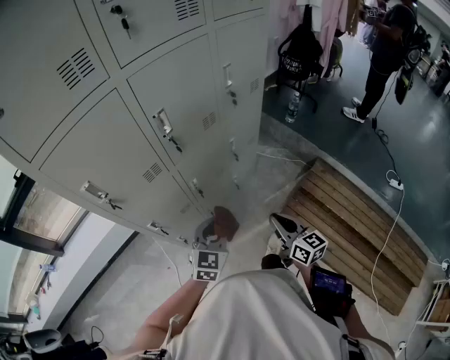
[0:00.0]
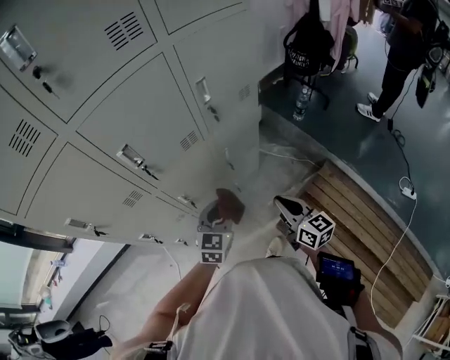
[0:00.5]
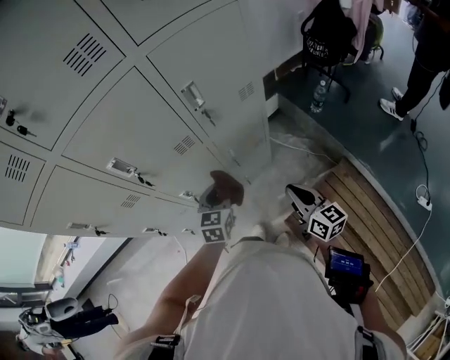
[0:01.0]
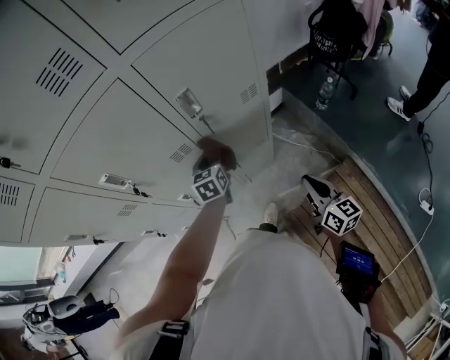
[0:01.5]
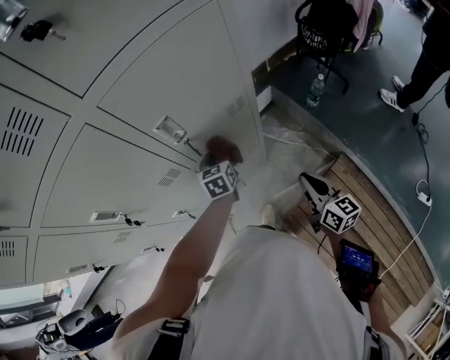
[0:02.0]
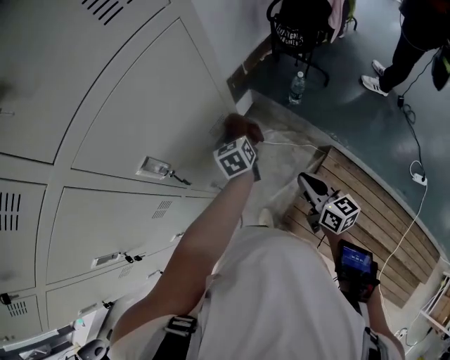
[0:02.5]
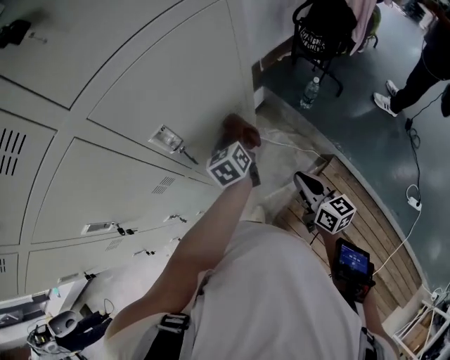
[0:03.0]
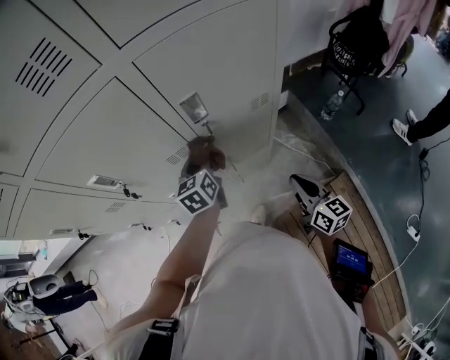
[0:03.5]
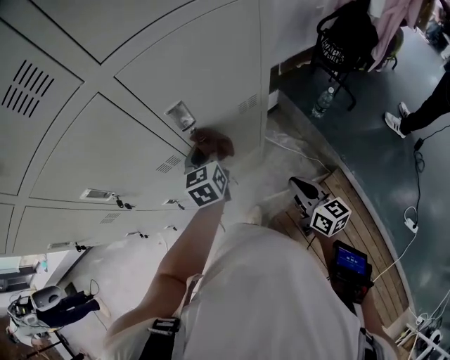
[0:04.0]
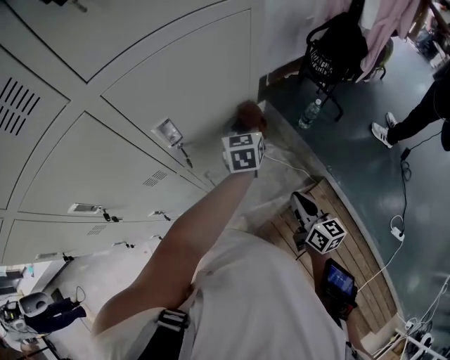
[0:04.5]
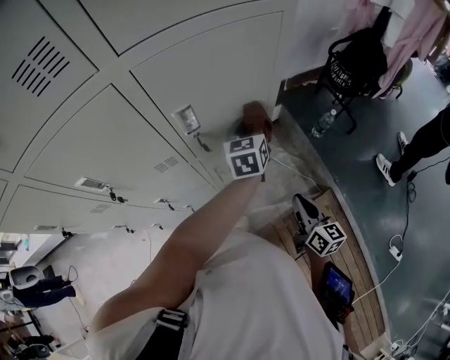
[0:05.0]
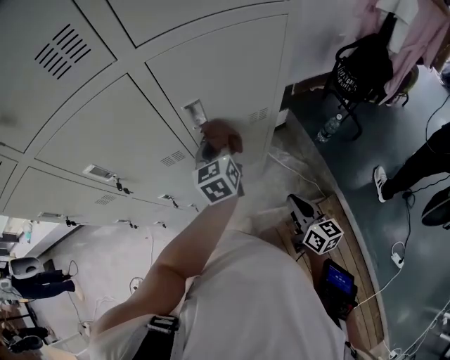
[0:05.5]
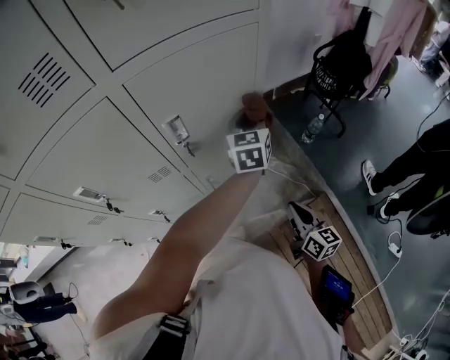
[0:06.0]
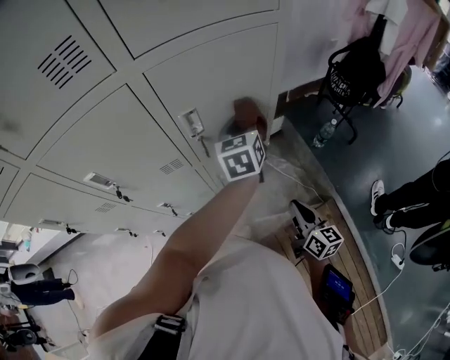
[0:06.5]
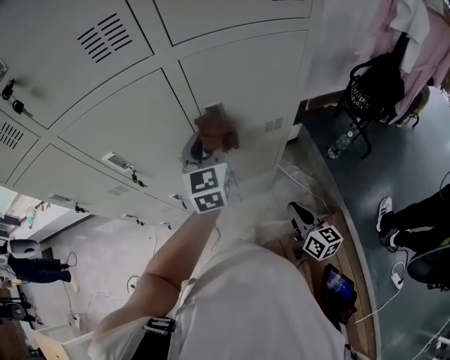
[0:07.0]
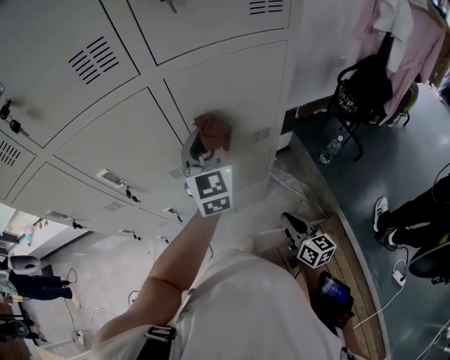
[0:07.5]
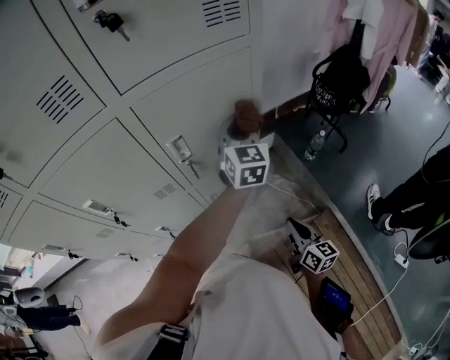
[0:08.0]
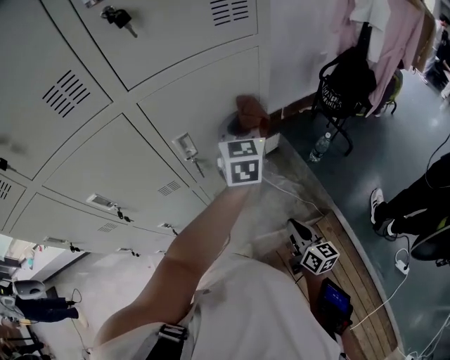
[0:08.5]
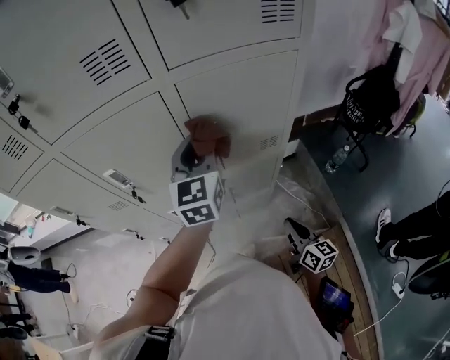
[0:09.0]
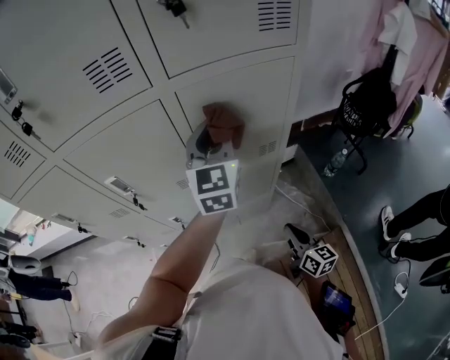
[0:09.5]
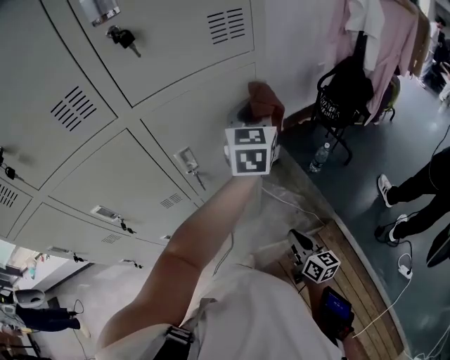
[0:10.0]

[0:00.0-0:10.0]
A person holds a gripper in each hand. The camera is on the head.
0:00.0 to 0:02.0: The right gripper travels to the right and forward by some 35 cm. Meanwhile the left gripper moves forward and to the right, some 40 cm, and turns by approximately 40 degrees.
0:02.0 to 0:04.0: The left gripper swings left and right, roughly 25 cm each way, with 2 reversals.
0:04.0 to 0:06.0: The left gripper goes left and right, roughly 20 cm each way, reversing 2 times. Meanwhile the right gripper changes place by roughly 5 cm.
0:06.0 to 0:08.0: The left gripper goes about 5 cm upward, travels to the left and back again, approximately 25 cm each way, and turns by about 20 degrees.
0:08.0 to 0:10.0: The left gripper heads upward, covering about 10 cm, and reaches about 20 cm to the left, then returns.

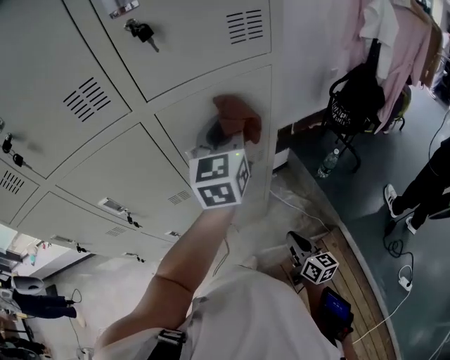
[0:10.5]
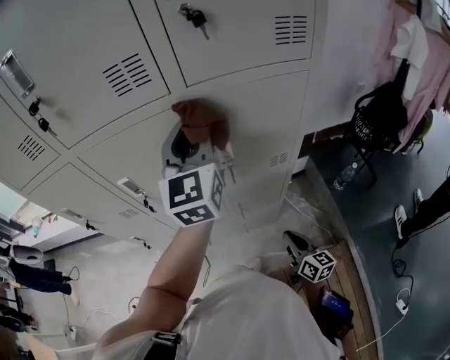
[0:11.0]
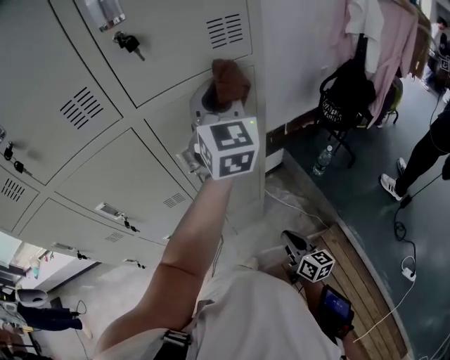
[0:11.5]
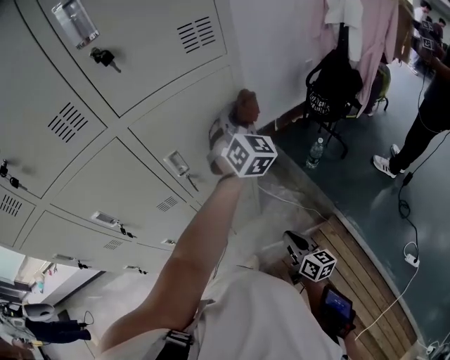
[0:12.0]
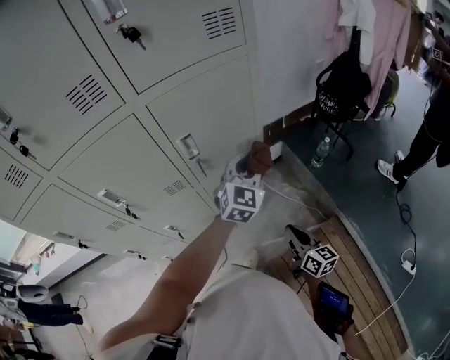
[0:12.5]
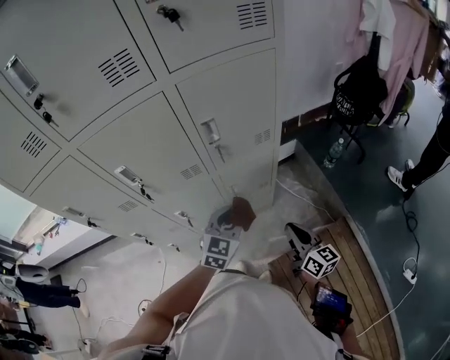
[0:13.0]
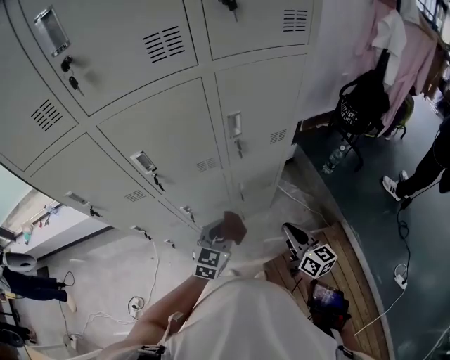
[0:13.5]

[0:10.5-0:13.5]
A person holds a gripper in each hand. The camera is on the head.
0:10.5 to 0:12.0: The left gripper goes roughly 10 cm to the right, and rotates around the line of its fingers by some 40 degrees, clockwise from behind.
0:12.0 to 0:13.5: The right gripper heads to the left and upward, covering about 10 cm. The left gripper travels backward, downward and to the left by approximately 50 cm, and swivels some 40 degrees.

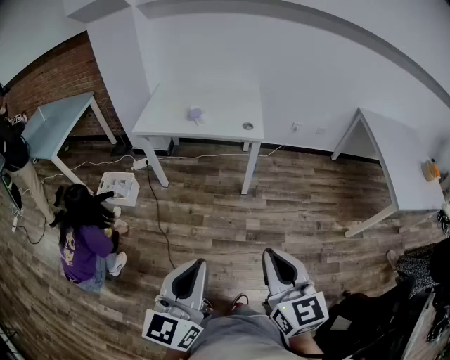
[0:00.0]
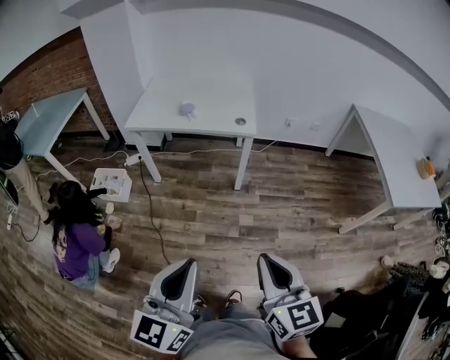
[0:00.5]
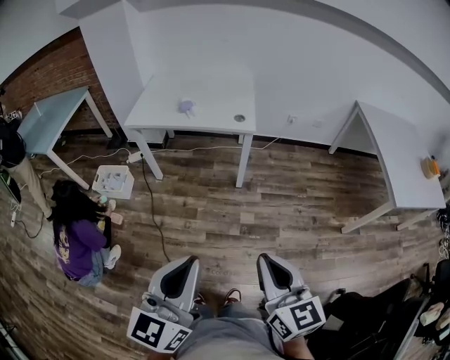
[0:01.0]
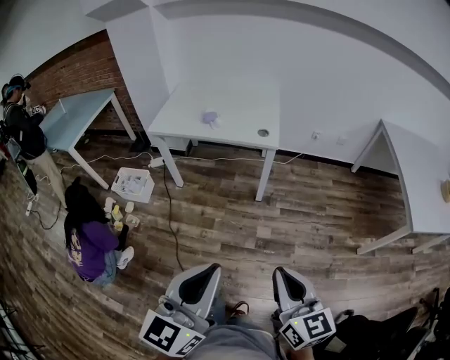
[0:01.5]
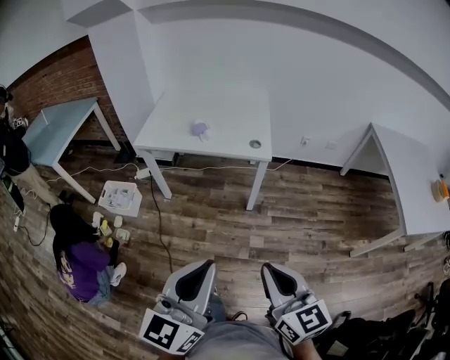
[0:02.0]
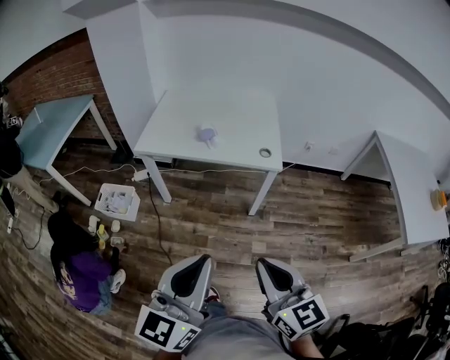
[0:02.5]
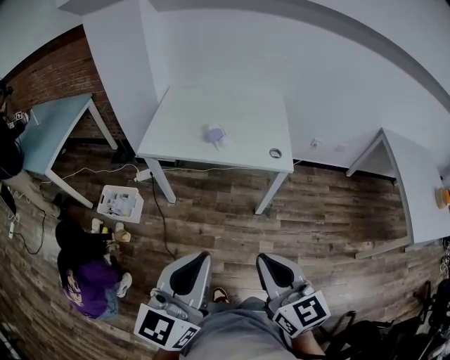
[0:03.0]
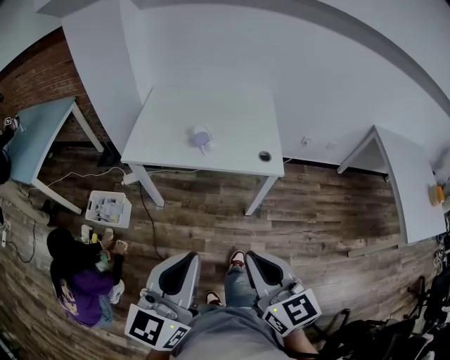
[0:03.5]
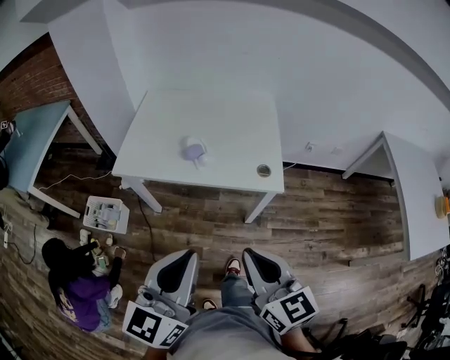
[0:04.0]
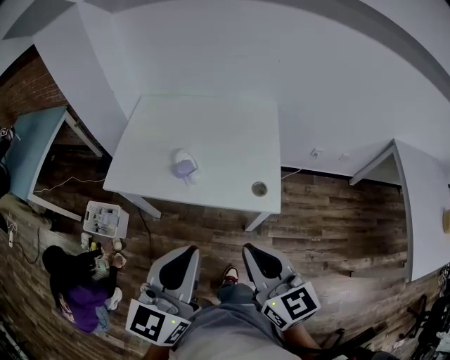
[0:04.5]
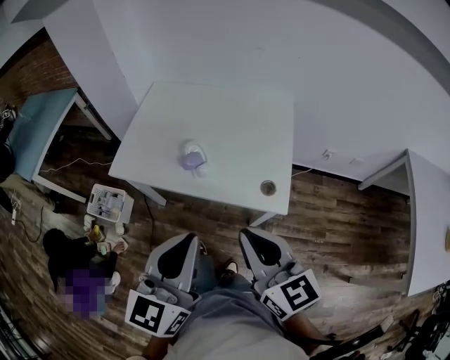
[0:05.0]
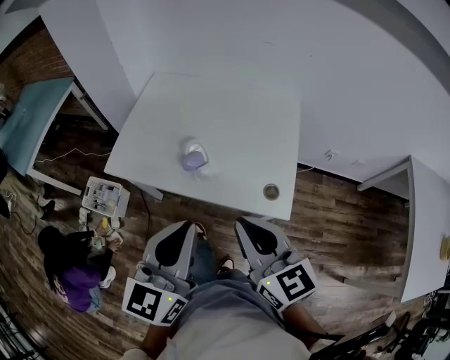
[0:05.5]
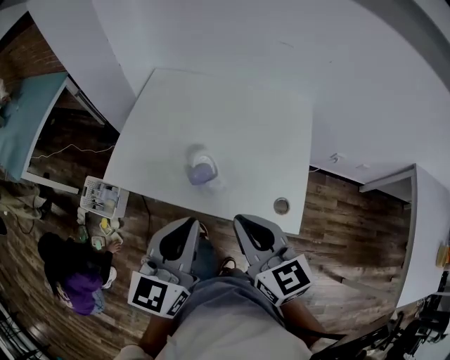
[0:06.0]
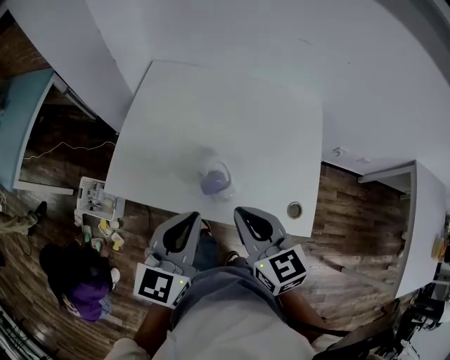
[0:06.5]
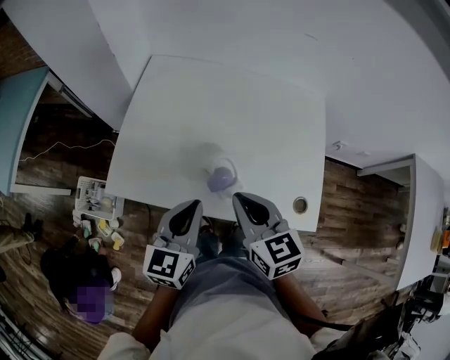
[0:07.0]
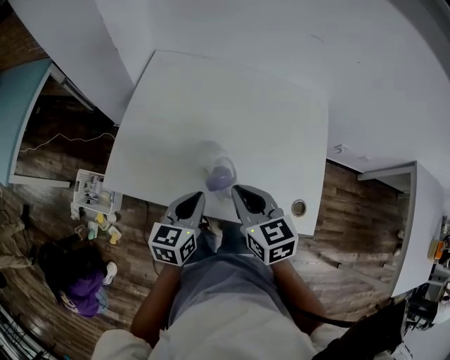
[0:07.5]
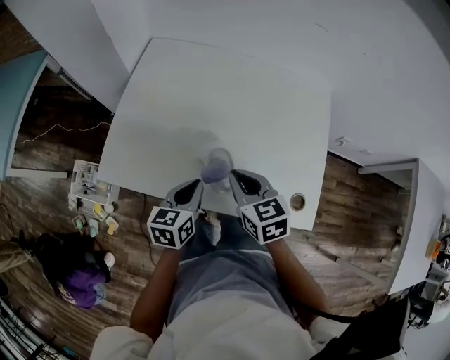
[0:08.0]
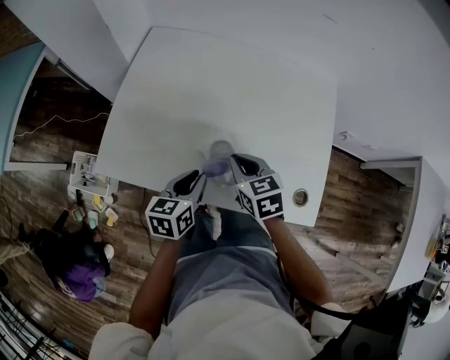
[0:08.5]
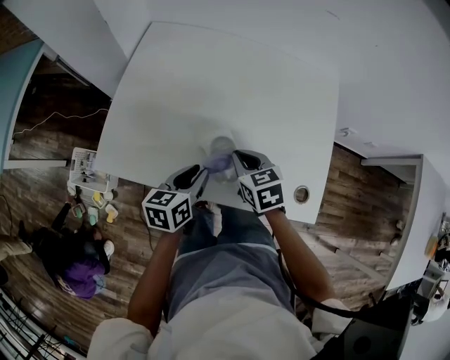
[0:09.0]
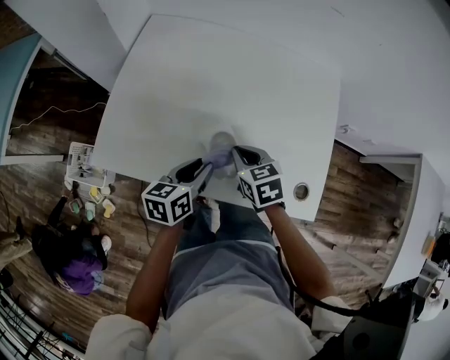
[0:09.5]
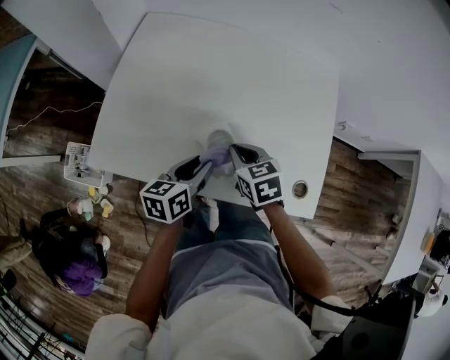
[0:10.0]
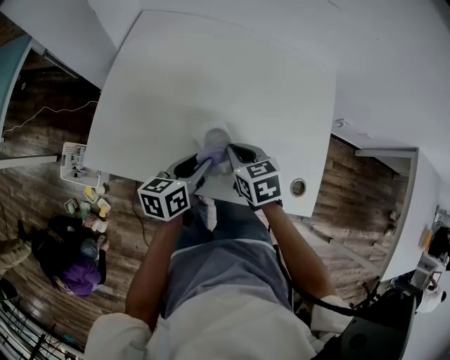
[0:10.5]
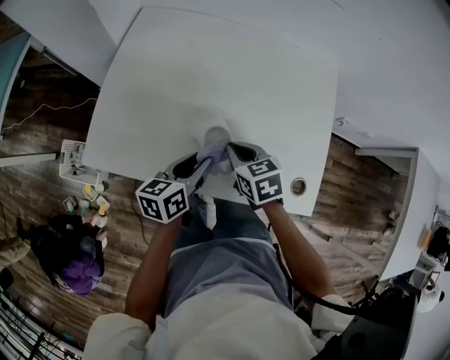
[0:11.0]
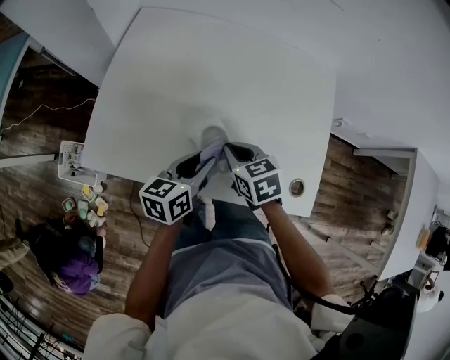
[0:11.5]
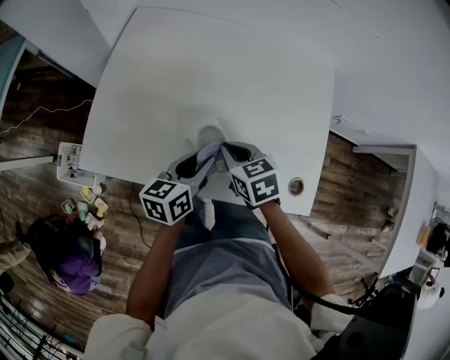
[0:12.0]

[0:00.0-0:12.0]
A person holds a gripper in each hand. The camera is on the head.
0:00.0 to 0:02.0: The two grippers go about 10 cm forward.
0:02.0 to 0:04.0: The grippers both shift forward by some 30 cm.
0:04.0 to 0:06.0: The two grippers go approximately 30 cm forward.
0:06.0 to 0:08.0: The grippers both shift downward and forward by roughly 25 cm. The right gripper changes its angle by about 20 degrees; the left gripper turns by approximately 30 degrees.
0:08.0 to 0:10.0: The right gripper goes some 10 cm downward, while the left gripper opens its fingers.
0:10.0 to 0:12.0: The grippers stay close to where they were, moving slightly.

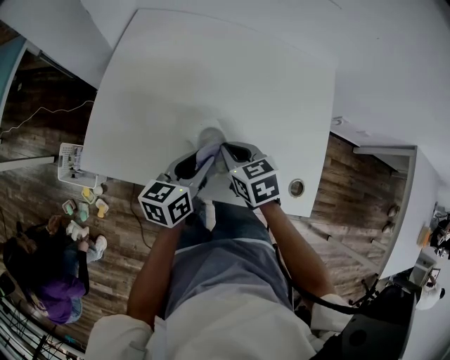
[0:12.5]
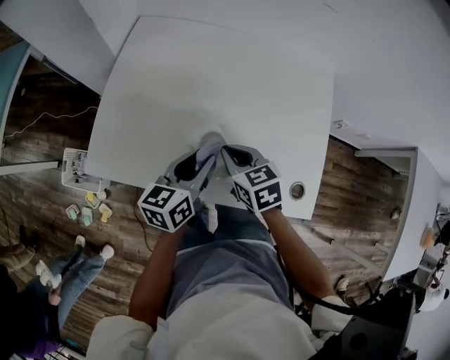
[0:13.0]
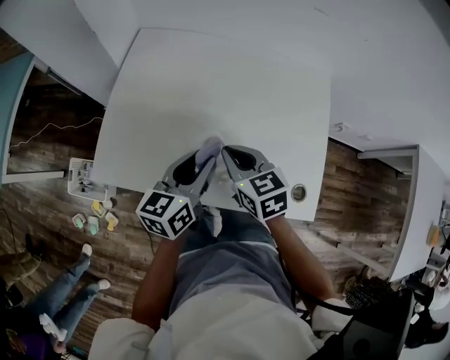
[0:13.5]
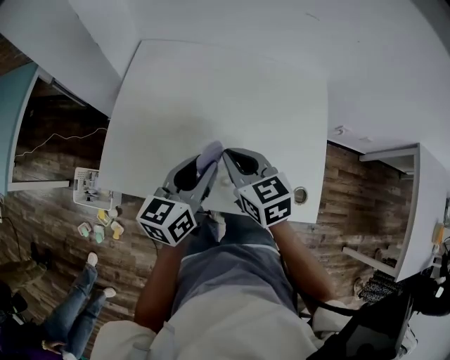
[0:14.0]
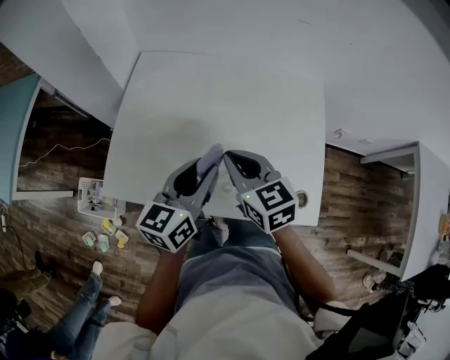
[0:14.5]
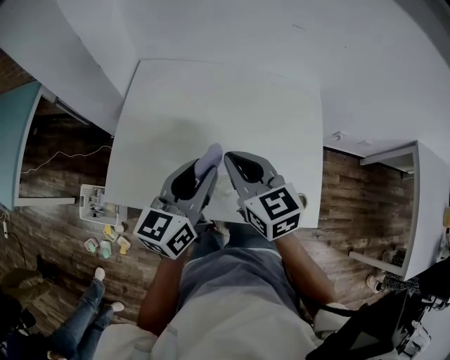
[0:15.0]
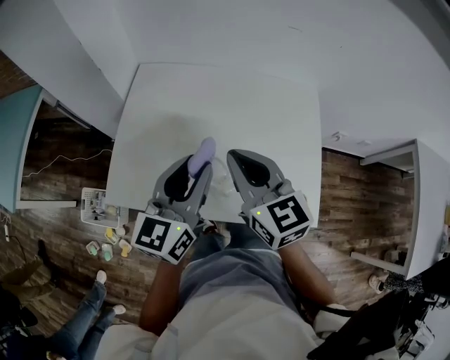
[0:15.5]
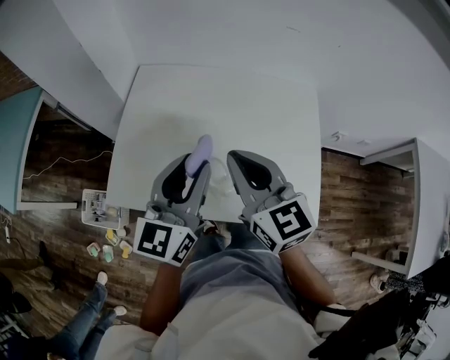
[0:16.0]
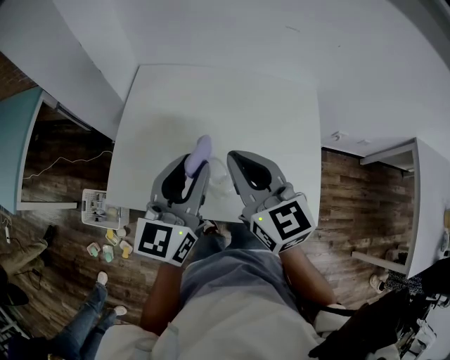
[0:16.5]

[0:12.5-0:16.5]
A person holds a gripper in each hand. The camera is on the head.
0:12.5 to 0:14.5: Both grippers travel together upward, roughly 15 cm. The right gripper rotates approximately 20 degrees.
0:14.5 to 0:16.5: Both grippers move upward, approximately 10 cm.
